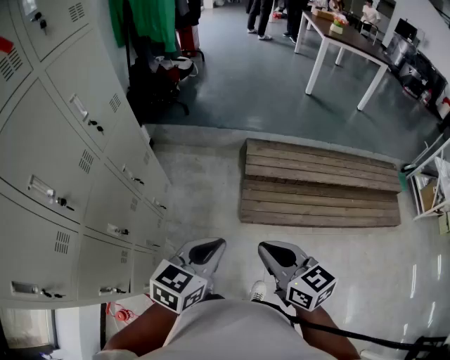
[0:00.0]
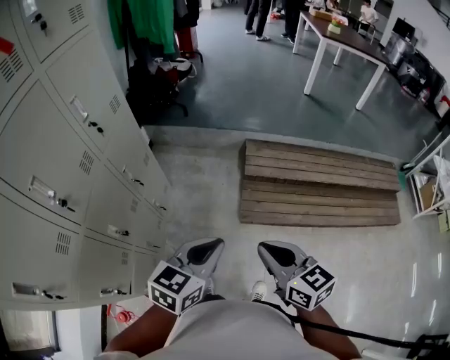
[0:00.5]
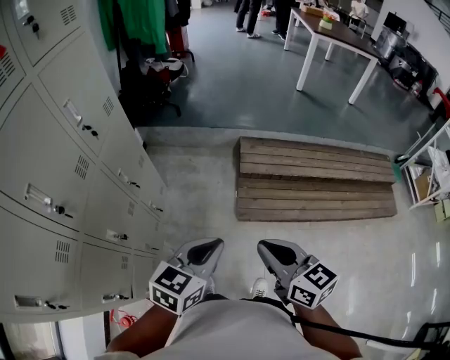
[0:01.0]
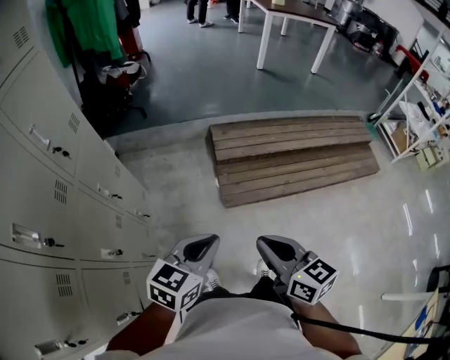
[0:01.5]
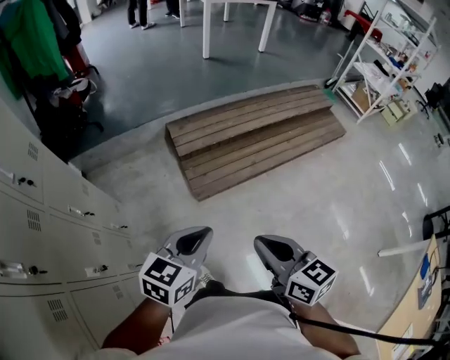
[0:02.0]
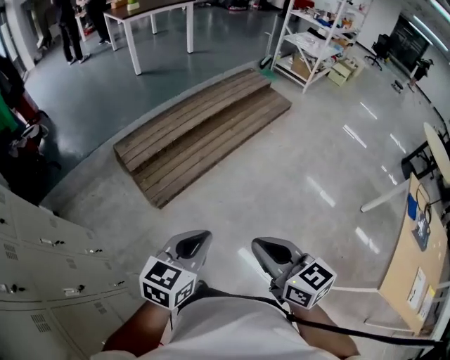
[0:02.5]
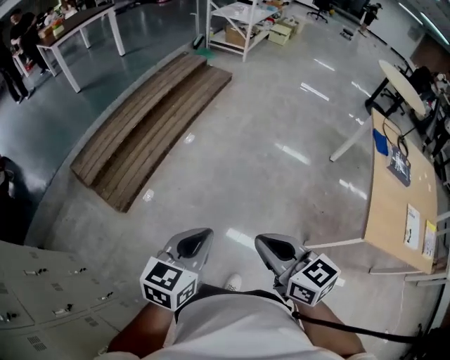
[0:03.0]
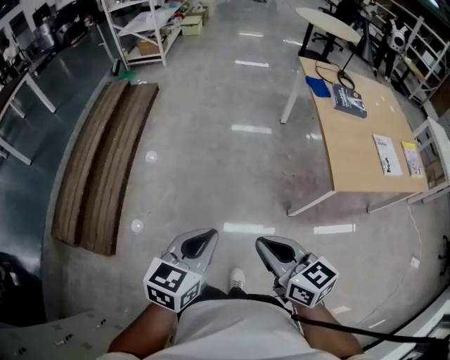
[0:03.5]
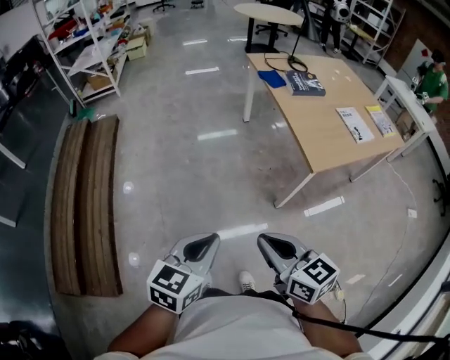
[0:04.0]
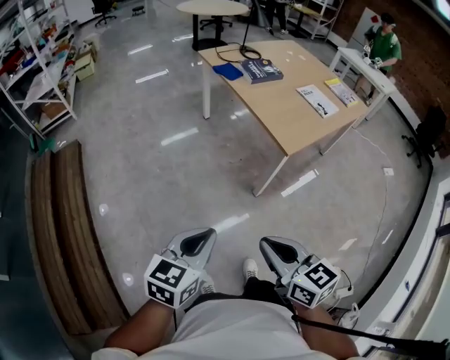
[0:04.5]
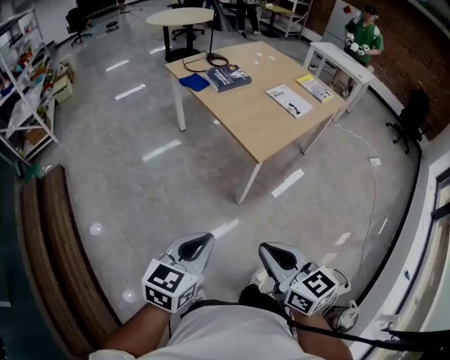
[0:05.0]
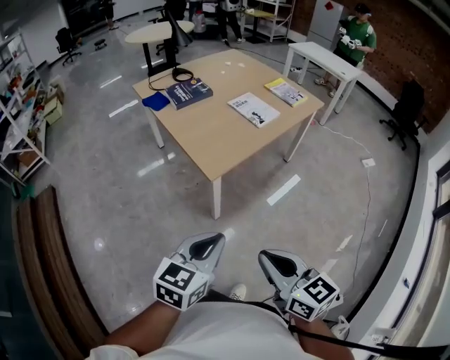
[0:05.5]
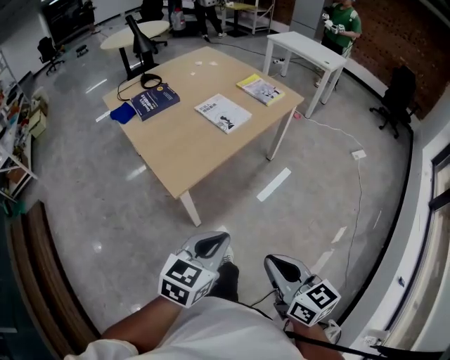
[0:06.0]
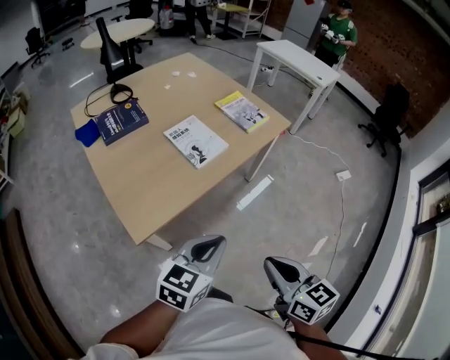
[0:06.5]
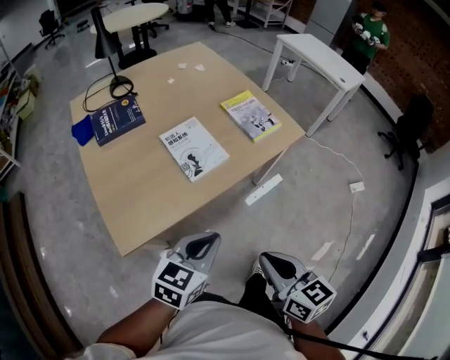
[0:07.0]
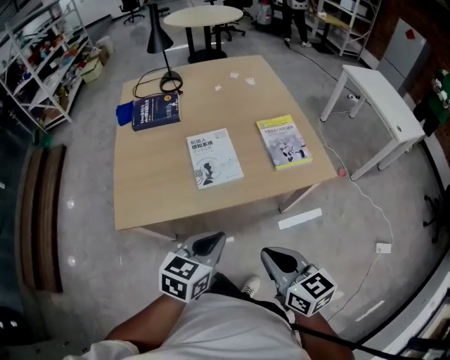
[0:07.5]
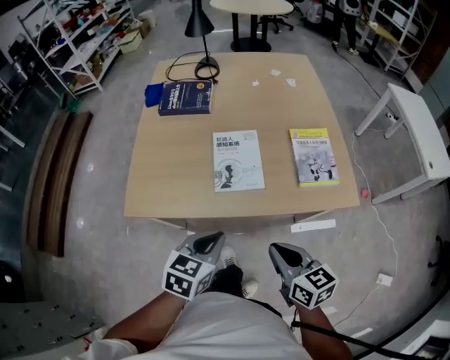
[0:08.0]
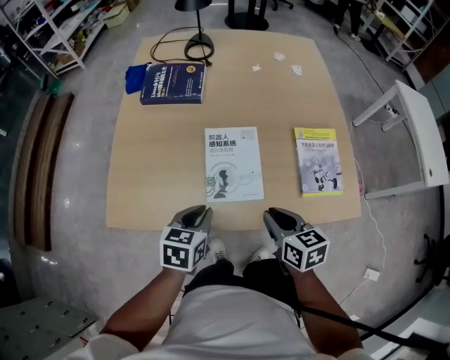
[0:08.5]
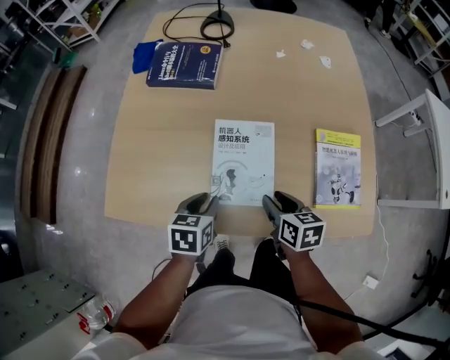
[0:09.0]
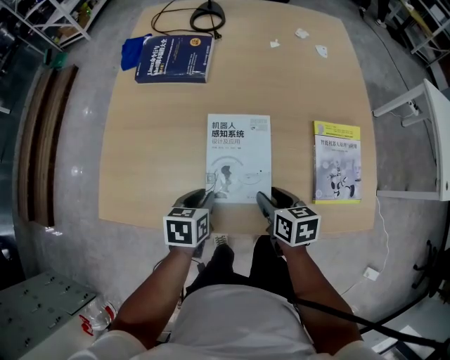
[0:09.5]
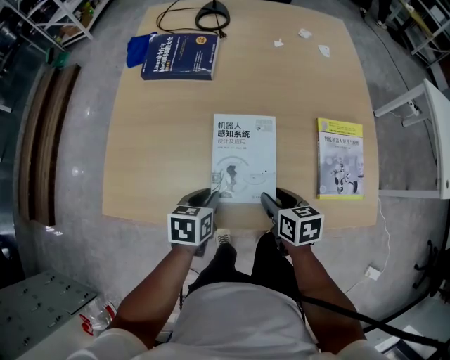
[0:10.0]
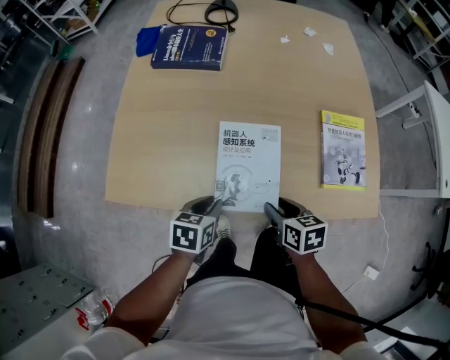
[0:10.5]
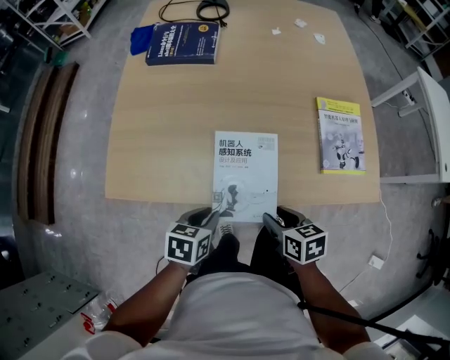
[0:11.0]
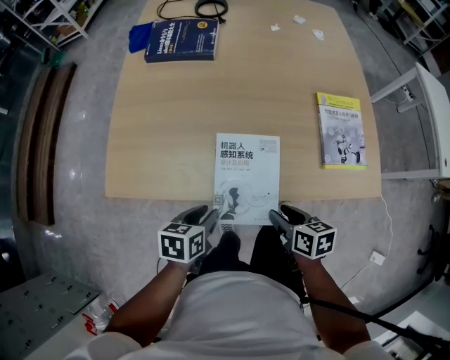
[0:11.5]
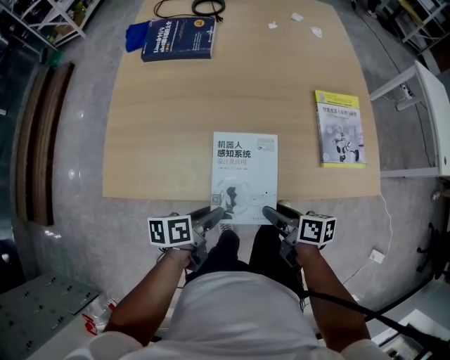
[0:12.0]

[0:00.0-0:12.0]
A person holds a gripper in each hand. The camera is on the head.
0:00.0 to 0:02.0: The left gripper shifts by some 5 cm, and changes its angle by about 30 degrees. Meanwhile the right gripper changes place by about 10 cm, and changes its angle by roughly 30 degrees.
0:02.0 to 0:04.0: The two grippers travel together, approximately 50 cm. The right gripper turns by roughly 80 degrees. The left gripper rotates approximately 80 degrees.
0:04.0 to 0:06.0: Both grippers are carried roughly 40 cm. The right gripper rotates approximately 40 degrees. Meanwhile the left gripper turns by some 30 degrees.
0:06.0 to 0:08.0: The right gripper shifts by about 50 cm, and turns by about 40 degrees; the left gripper changes place by approximately 40 cm, and changes its angle by about 50 degrees.
0:08.0 to 0:10.0: The two grippers go about 25 cm forward and downward. The left gripper turns by about 30 degrees; the right gripper rotates roughly 20 degrees, and opens its fingers.
0:10.0 to 0:12.0: Both grippers travel together backward, roughly 10 cm. The right gripper swivels approximately 30 degrees, while the left gripper changes its angle by some 30 degrees.

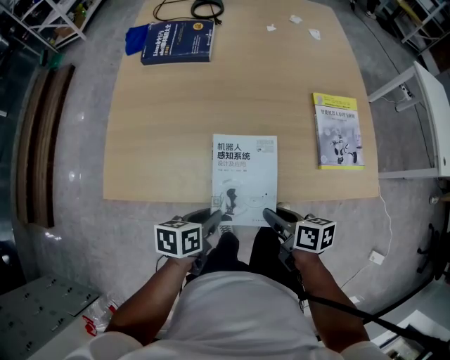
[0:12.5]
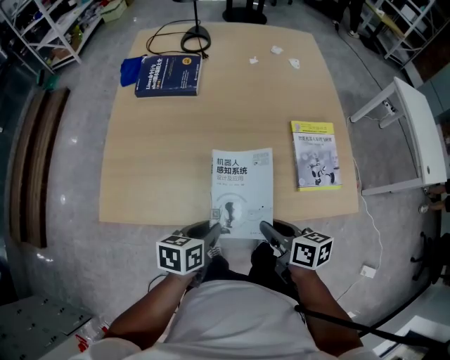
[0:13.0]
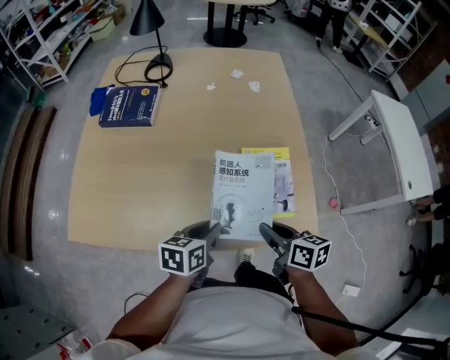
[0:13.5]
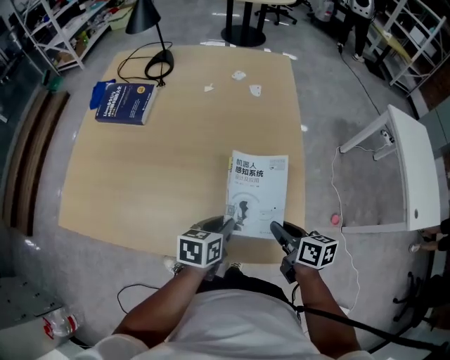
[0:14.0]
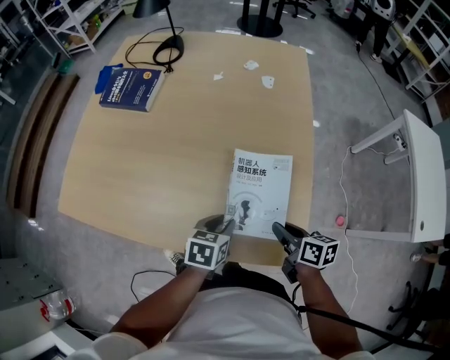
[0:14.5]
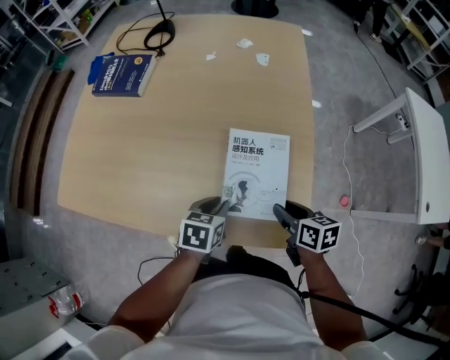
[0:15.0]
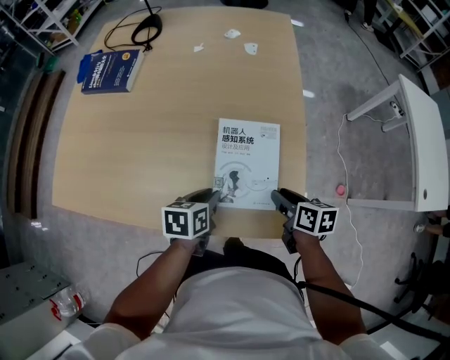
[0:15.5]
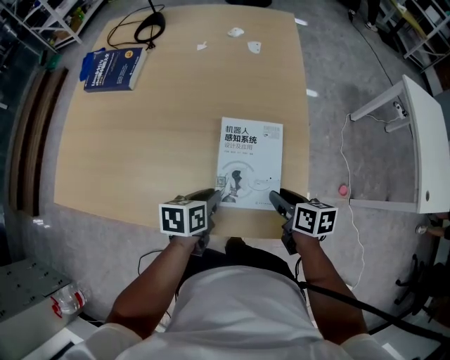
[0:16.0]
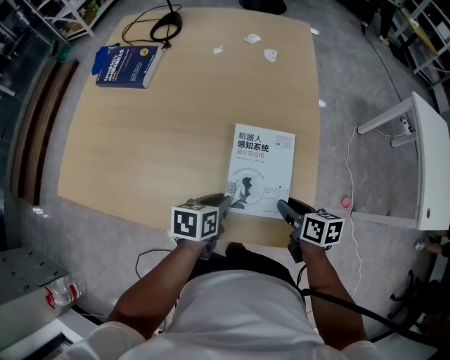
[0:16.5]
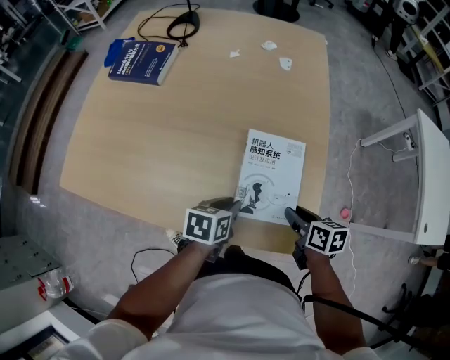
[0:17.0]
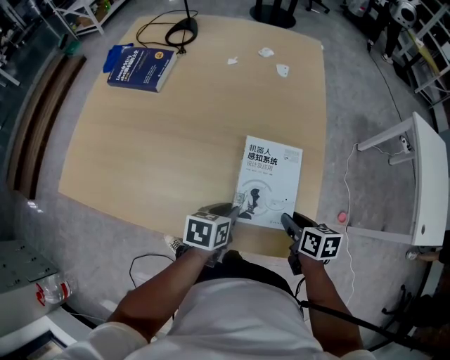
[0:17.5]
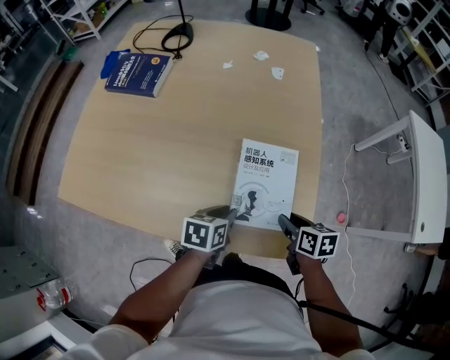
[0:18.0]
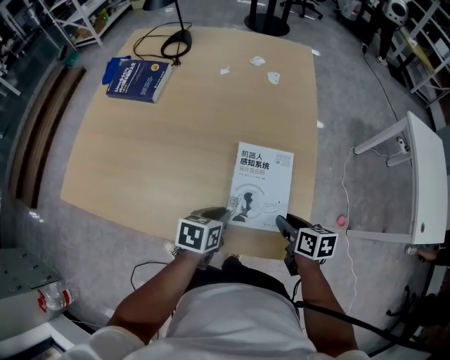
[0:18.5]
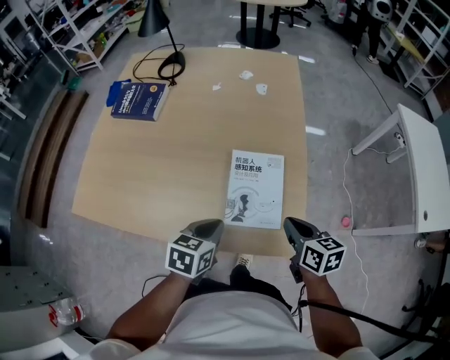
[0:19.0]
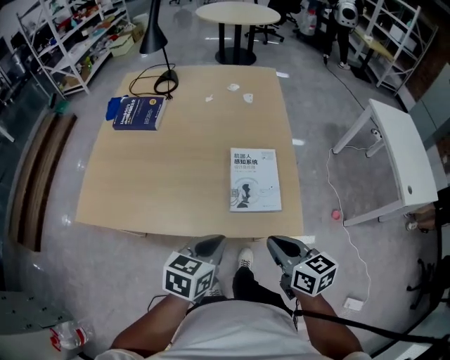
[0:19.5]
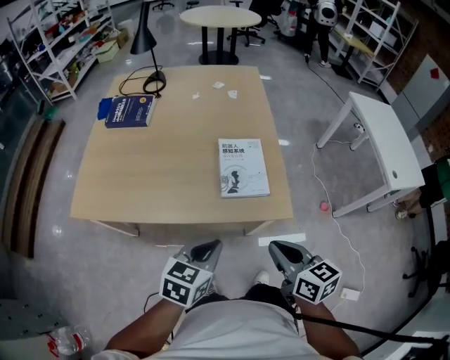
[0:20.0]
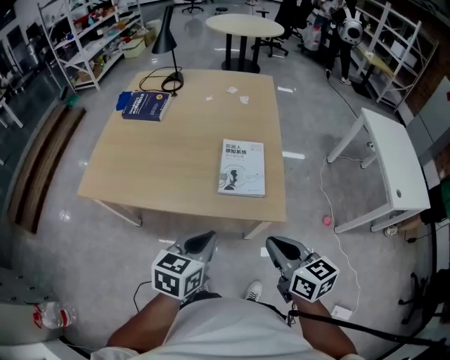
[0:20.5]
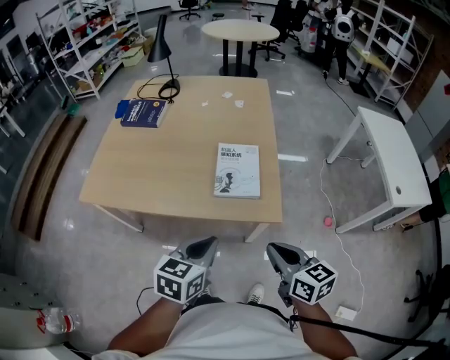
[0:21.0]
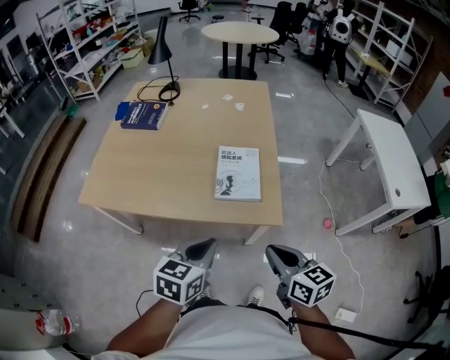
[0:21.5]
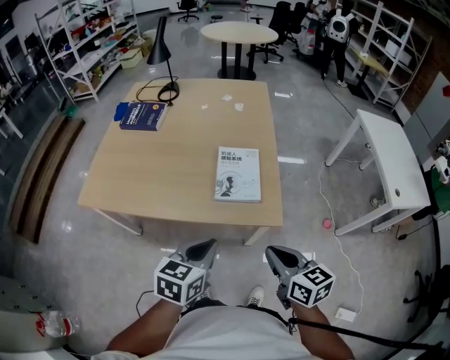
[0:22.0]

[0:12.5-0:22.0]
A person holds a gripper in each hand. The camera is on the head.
0:12.5 to 0:14.5: The two grippers go some 35 cm to the right and forward.
0:14.5 to 0:18.0: The grippers move only a little.
0:18.0 to 0:20.0: The grippers both shift backward and upward by approximately 30 cm. The right gripper turns by some 30 degrees, and closes; the left gripper swivels some 30 degrees.
0:20.0 to 0:22.0: The grippers move only a little.

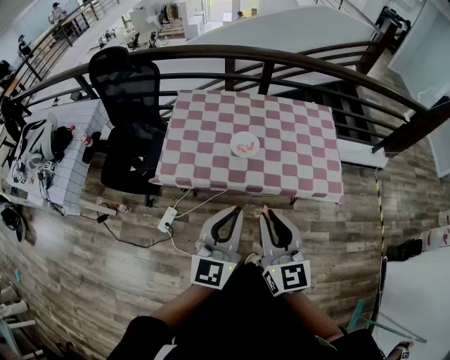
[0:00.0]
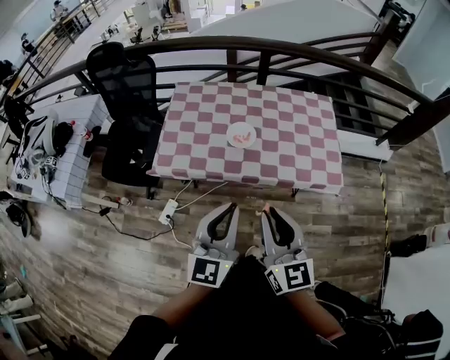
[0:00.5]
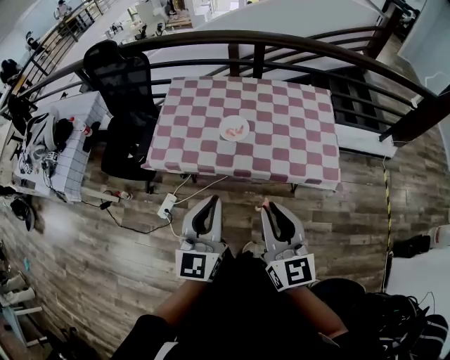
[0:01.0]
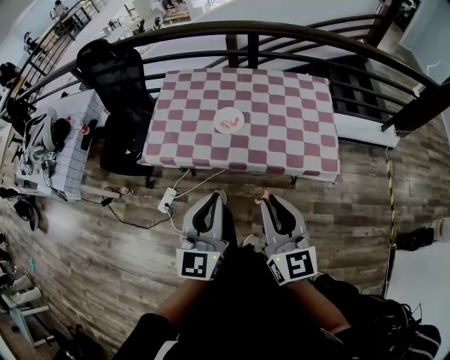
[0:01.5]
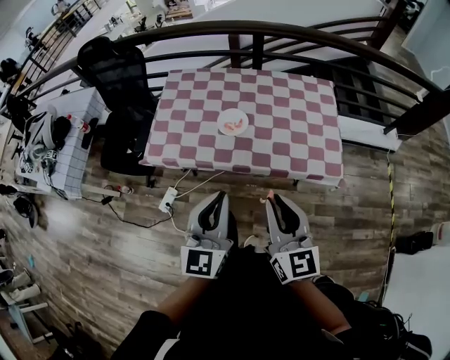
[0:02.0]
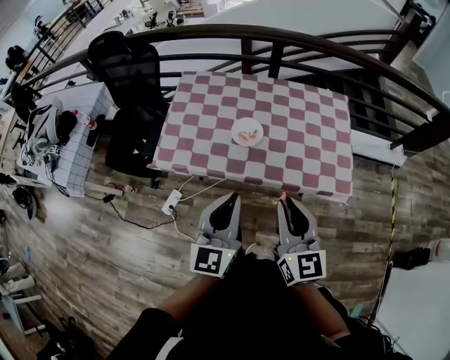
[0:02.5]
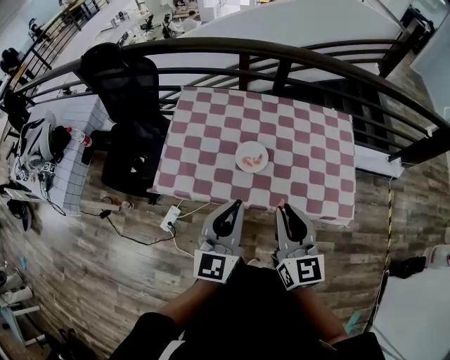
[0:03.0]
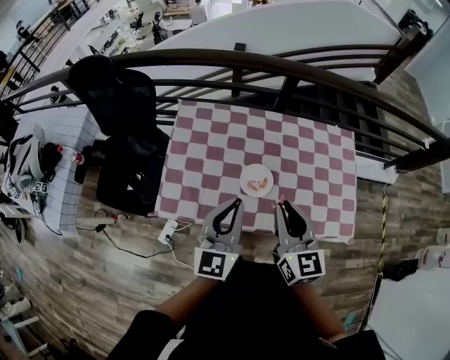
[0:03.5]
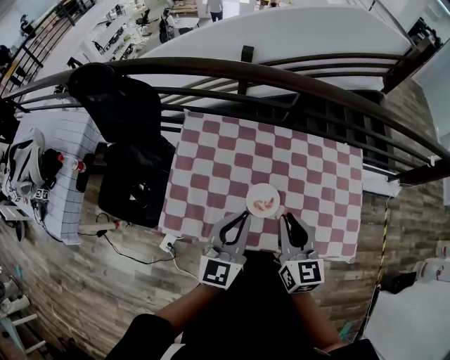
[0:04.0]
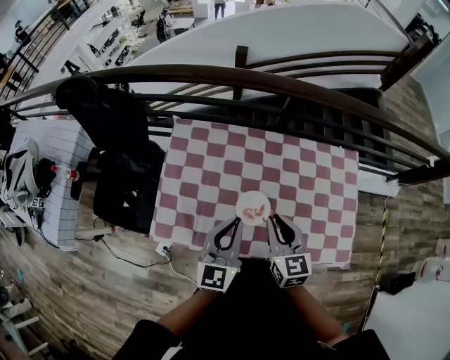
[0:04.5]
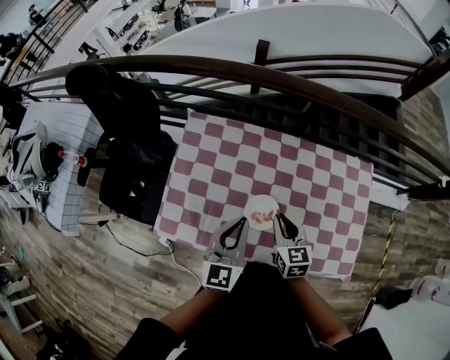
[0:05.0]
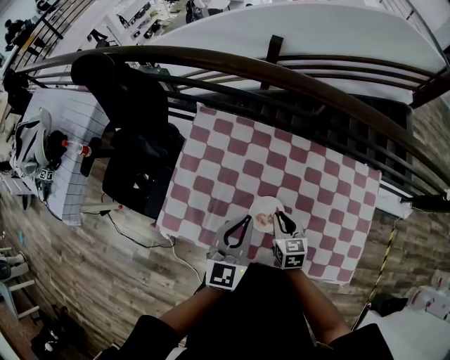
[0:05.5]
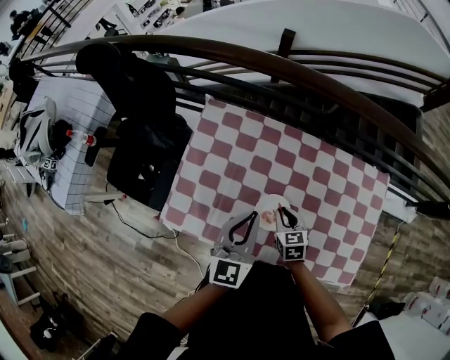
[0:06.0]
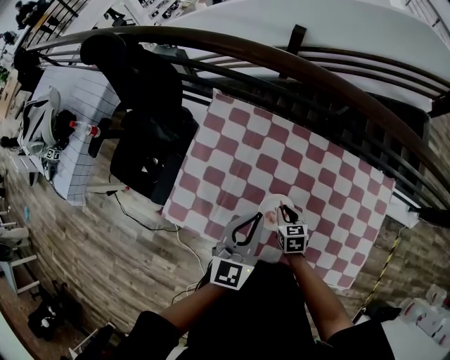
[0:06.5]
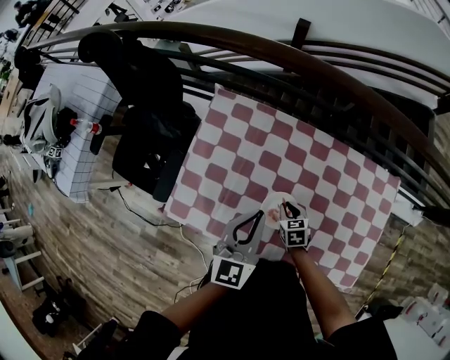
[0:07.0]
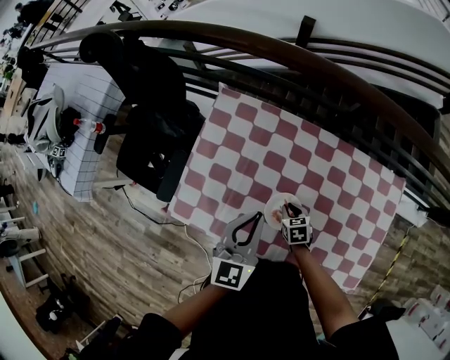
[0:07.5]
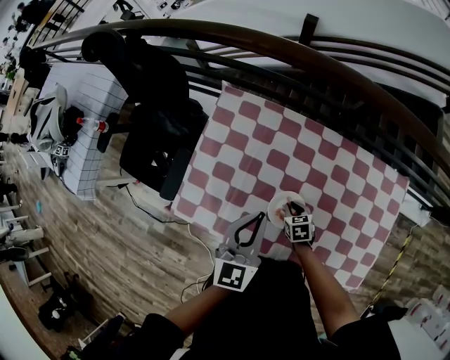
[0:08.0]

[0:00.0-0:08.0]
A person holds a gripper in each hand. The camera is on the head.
0:00.0 to 0:02.0: The left gripper moves to the right, roughly 10 cm; the right gripper travels to the right by approximately 15 cm.
0:02.0 to 0:04.0: The grippers both shift forward by about 35 cm.
0:04.0 to 0:06.0: The left gripper goes roughly 10 cm forward and downward. The right gripper travels downward by about 25 cm, and swivels roughly 30 degrees.
0:06.0 to 0:08.0: The right gripper heads downward, covering approximately 10 cm.
